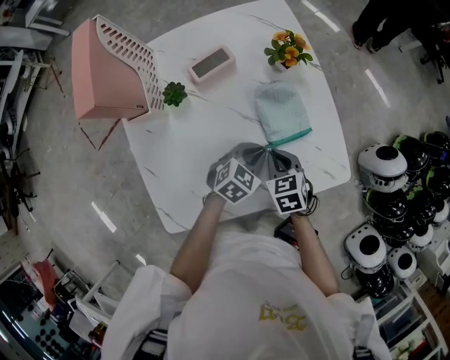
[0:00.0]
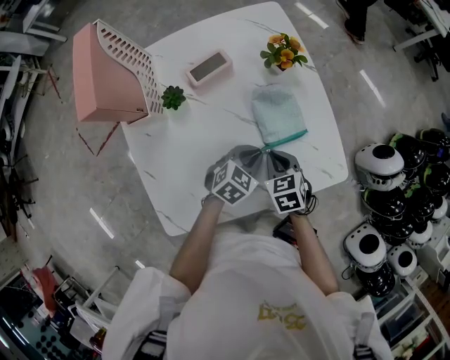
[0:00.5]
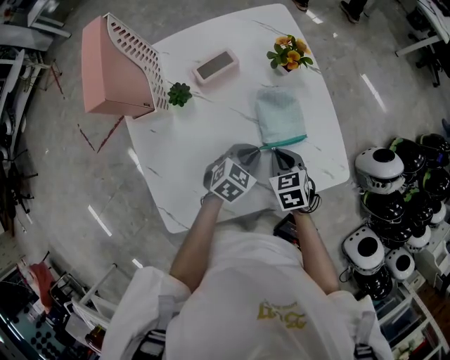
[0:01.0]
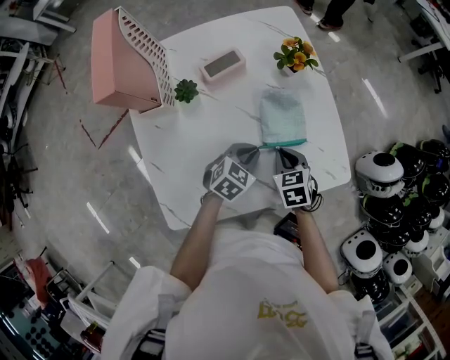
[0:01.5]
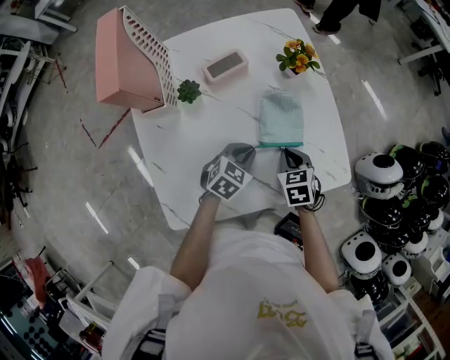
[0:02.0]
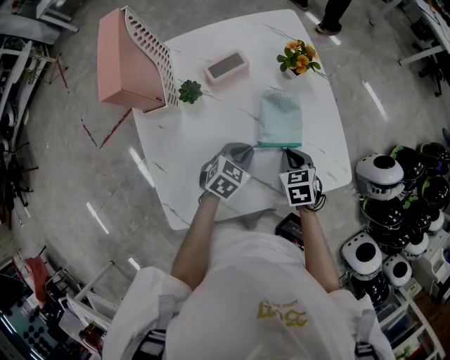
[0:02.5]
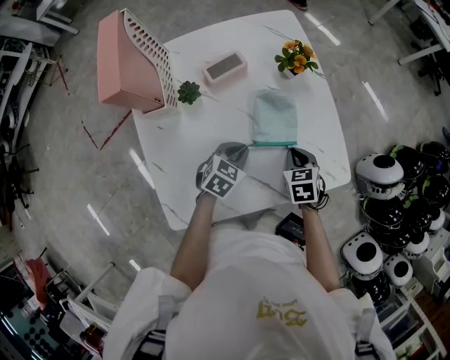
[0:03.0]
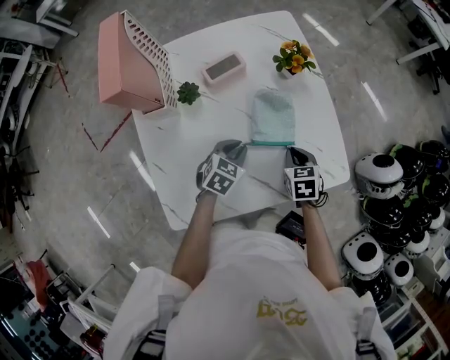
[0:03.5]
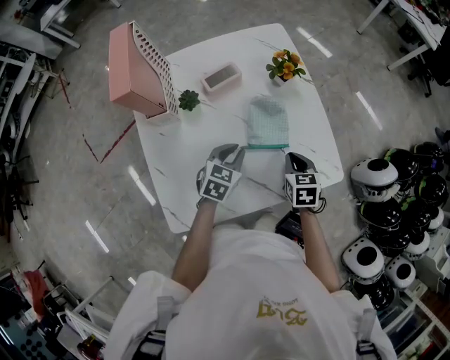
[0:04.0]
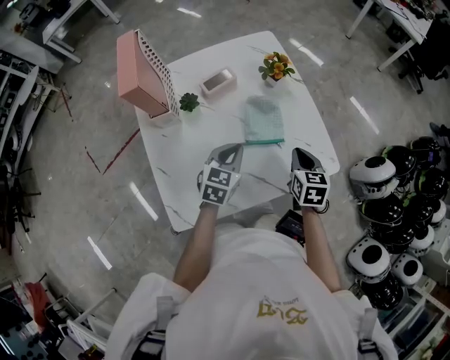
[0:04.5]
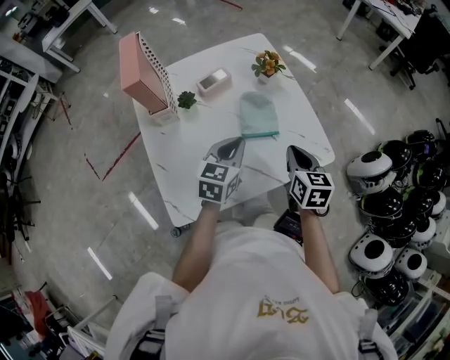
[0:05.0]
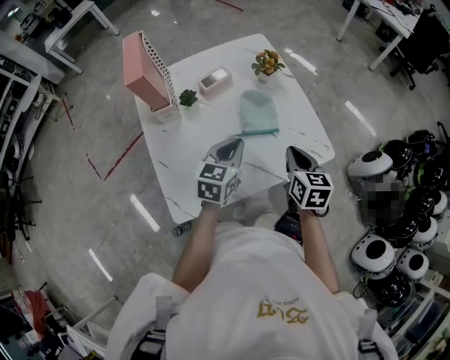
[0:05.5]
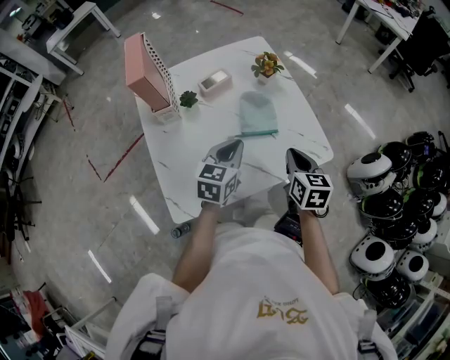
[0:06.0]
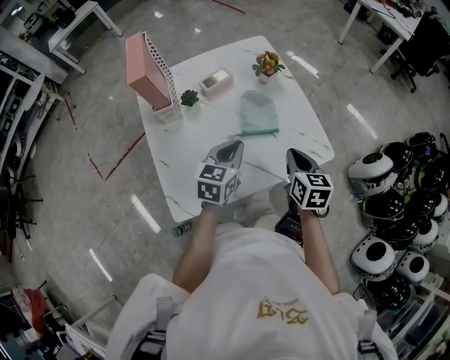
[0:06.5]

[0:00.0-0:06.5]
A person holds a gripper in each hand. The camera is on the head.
0:00.0 to 0:02.0: The left gripper is displaced to the left by approximately 5 cm.
0:02.0 to 0:04.5: The left gripper travels upward by approximately 10 cm, and rotates some 20 degrees. Meanwhile the right gripper heads upward and to the right, covering roughly 10 cm, and turns by some 30 degrees.
0:04.5 to 0:06.5: The left gripper goes some 10 cm upward and backward. The right gripper goes about 10 cm backward and upward.

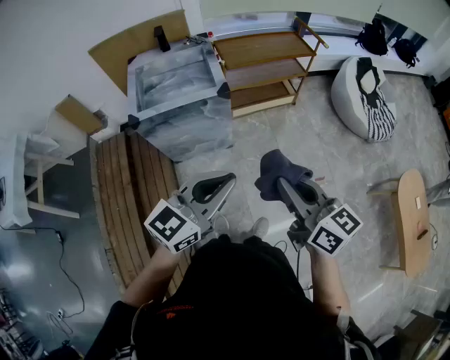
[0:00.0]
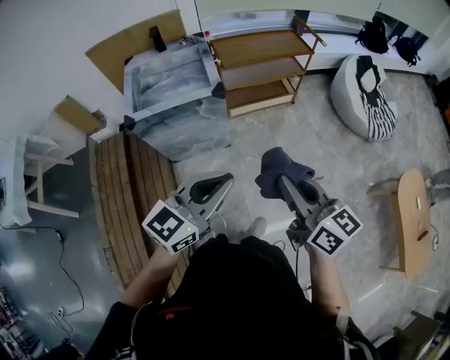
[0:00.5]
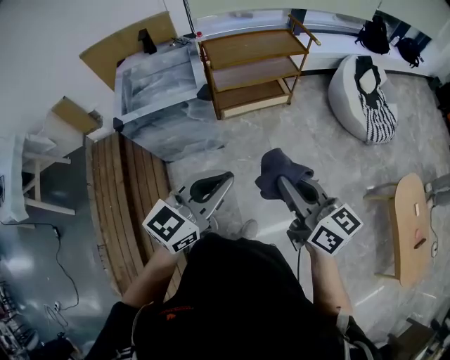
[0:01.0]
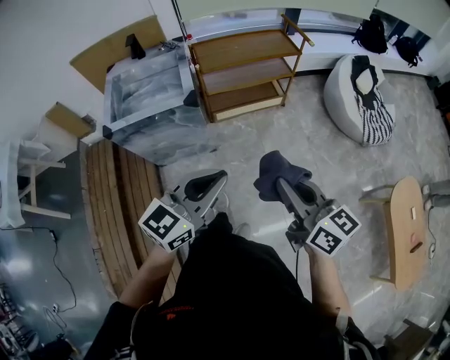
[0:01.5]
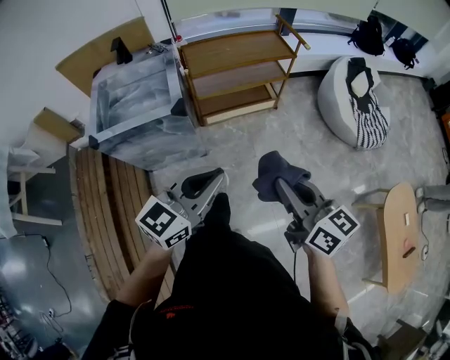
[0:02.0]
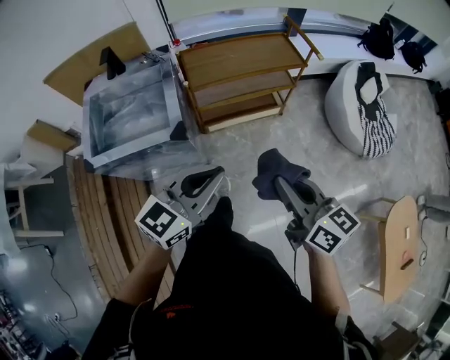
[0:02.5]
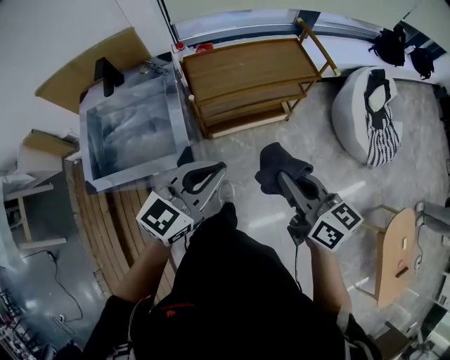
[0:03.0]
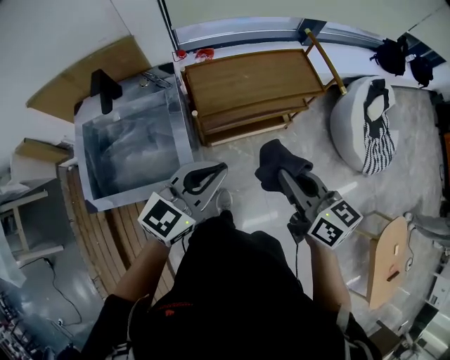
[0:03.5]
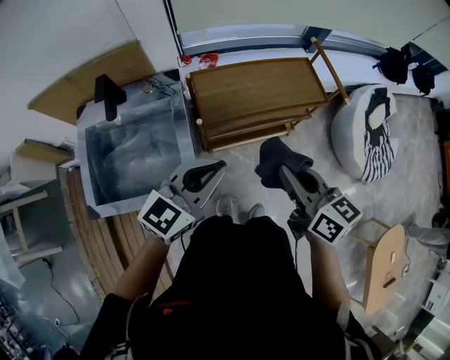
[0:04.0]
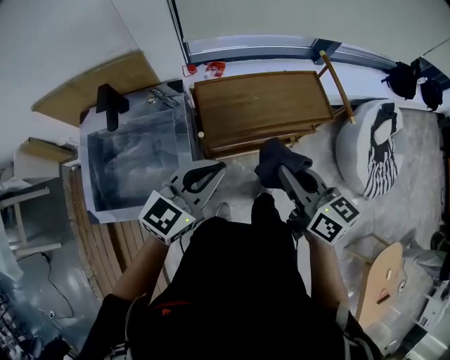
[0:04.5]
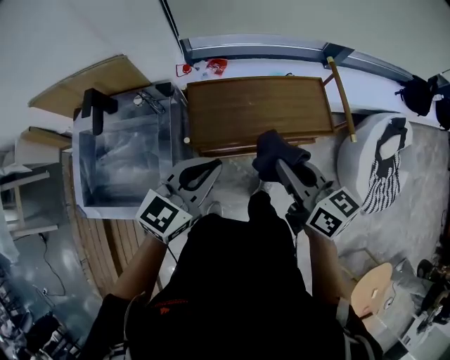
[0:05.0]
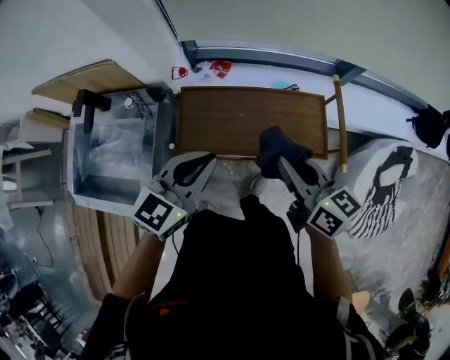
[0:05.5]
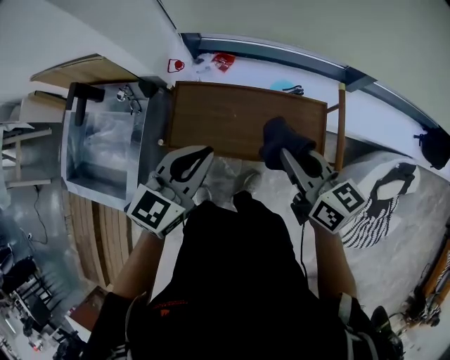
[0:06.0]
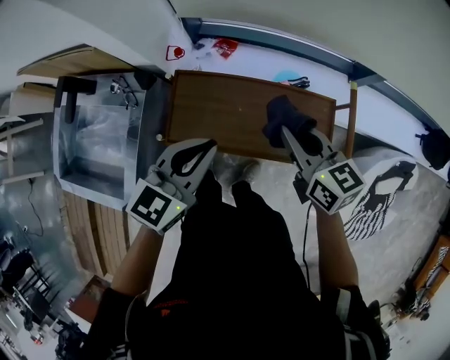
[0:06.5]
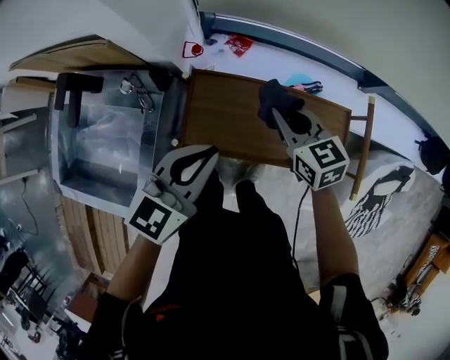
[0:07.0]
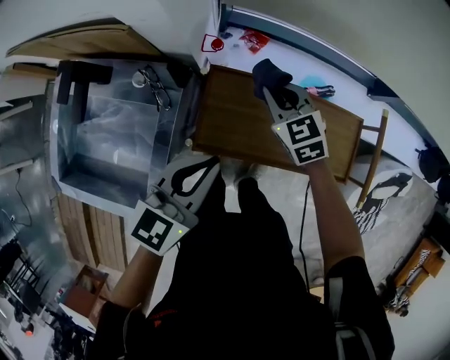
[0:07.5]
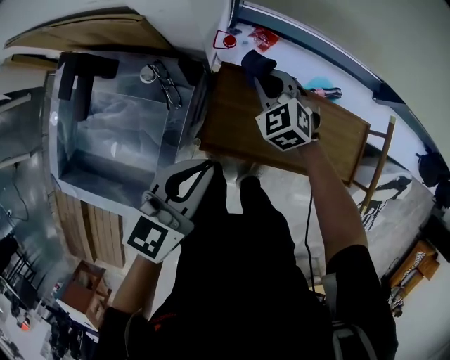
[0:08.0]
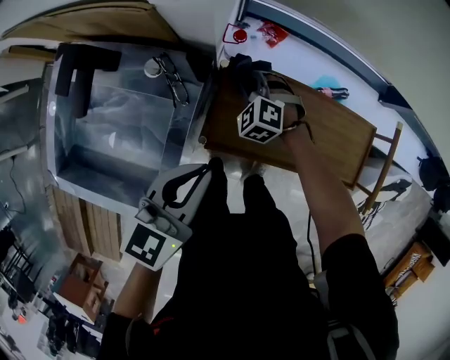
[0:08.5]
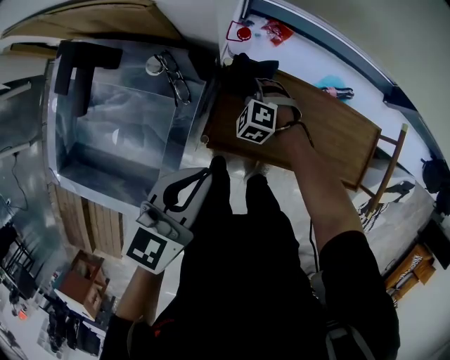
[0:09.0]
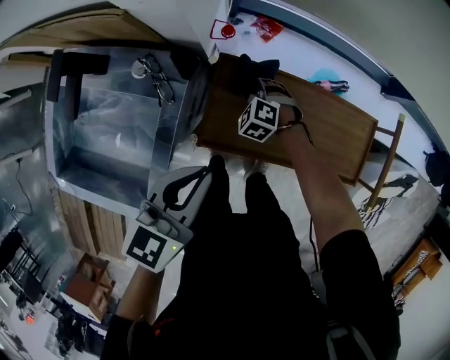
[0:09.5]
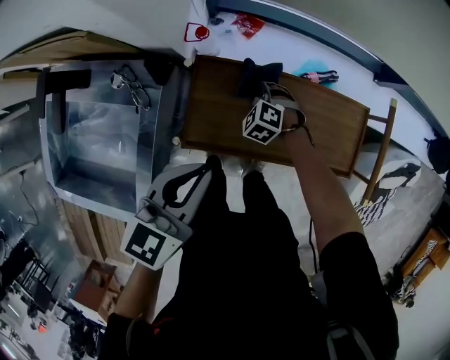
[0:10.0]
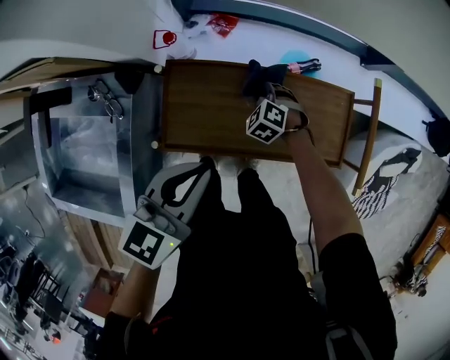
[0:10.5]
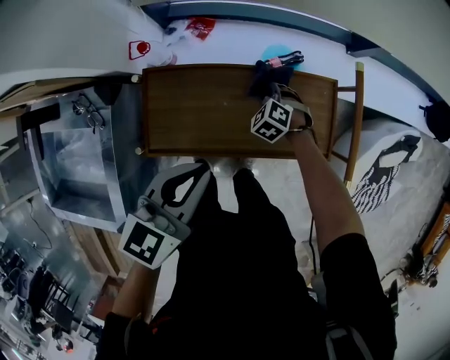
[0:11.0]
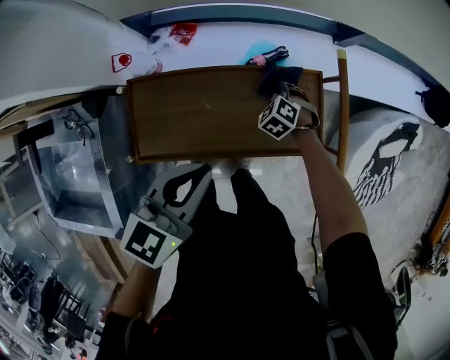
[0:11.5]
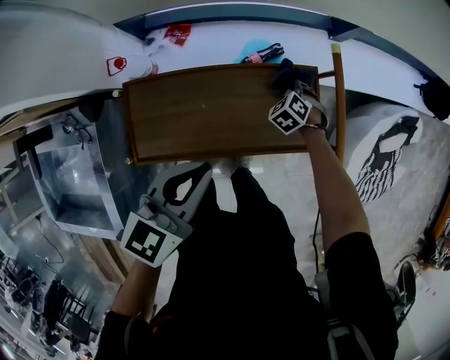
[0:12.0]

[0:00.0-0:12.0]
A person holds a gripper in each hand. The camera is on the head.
0:00.0 to 0:02.0: The right gripper moves to the right and forward, roughly 20 cm; the left gripper is displaced forward and to the right by approximately 20 cm.
0:02.0 to 0:04.0: Both grippers are carried forward, some 40 cm.
0:04.0 to 0:06.0: The left gripper shifts by approximately 30 cm, and swivels approximately 30 degrees. The right gripper ends up roughly 35 cm from where it was, and changes its angle by about 30 degrees.
0:06.0 to 0:08.0: The left gripper goes approximately 20 cm to the left; the right gripper shifts approximately 40 cm to the left, forward and downward, and rotates around the line of its fingers by about 60 degrees, counterclockwise from behind.
0:08.0 to 0:10.0: The left gripper moves to the right, approximately 5 cm, while the right gripper travels downward and to the right by roughly 15 cm, and turns by some 20 degrees.
0:10.0 to 0:12.0: The left gripper shifts by about 20 cm. The right gripper moves roughly 35 cm, and turns by about 30 degrees.

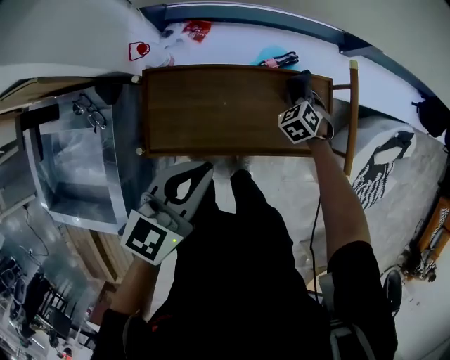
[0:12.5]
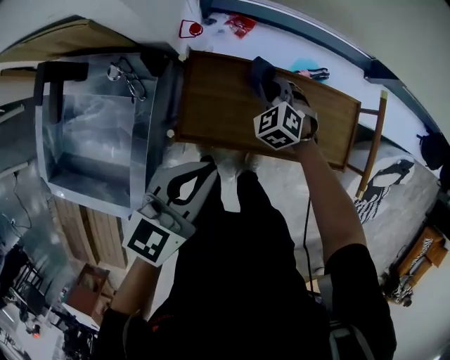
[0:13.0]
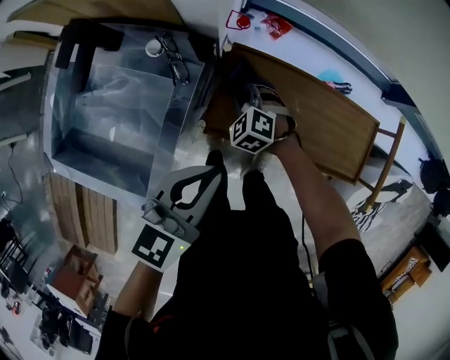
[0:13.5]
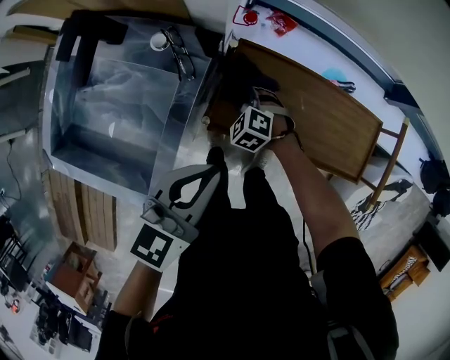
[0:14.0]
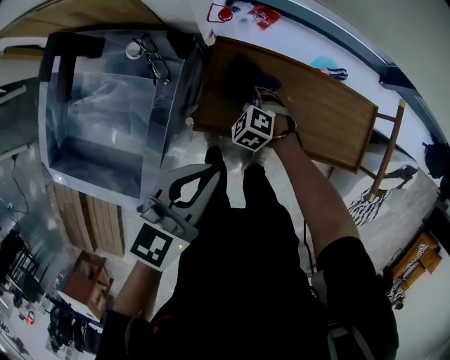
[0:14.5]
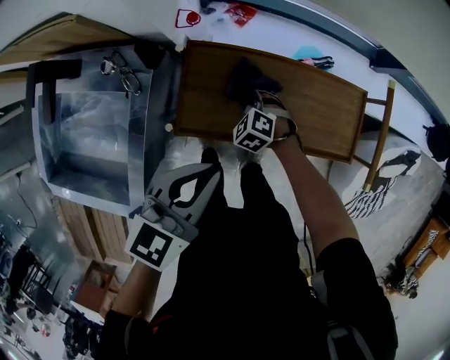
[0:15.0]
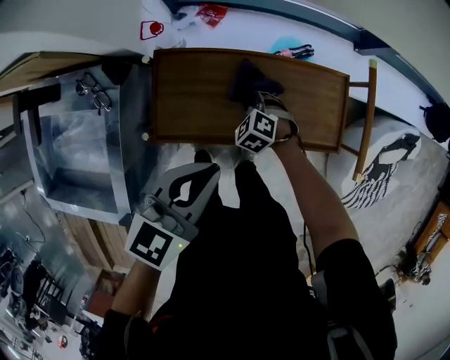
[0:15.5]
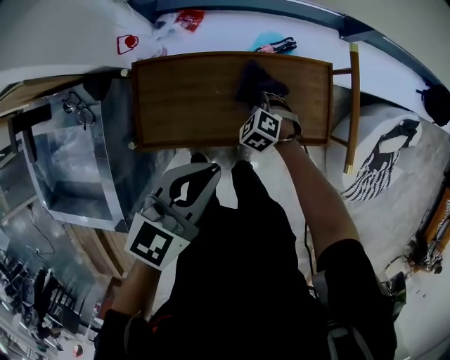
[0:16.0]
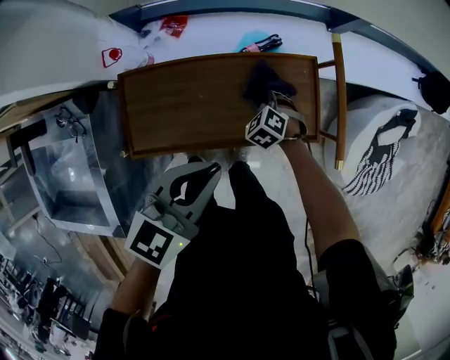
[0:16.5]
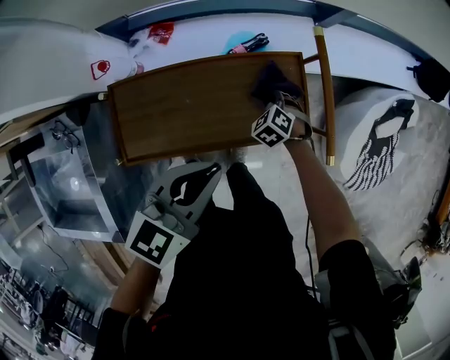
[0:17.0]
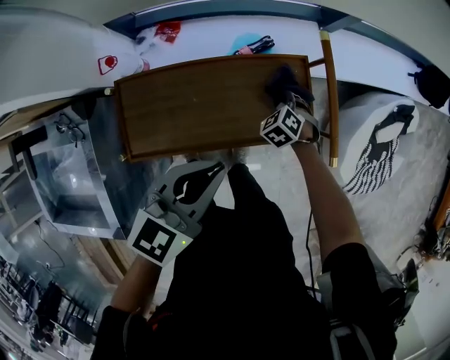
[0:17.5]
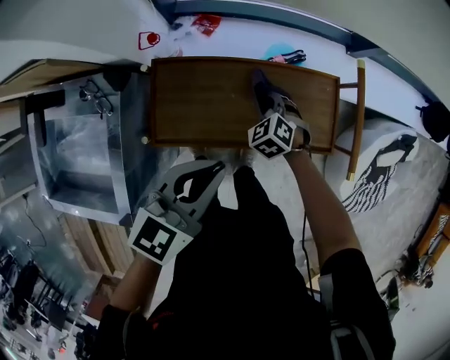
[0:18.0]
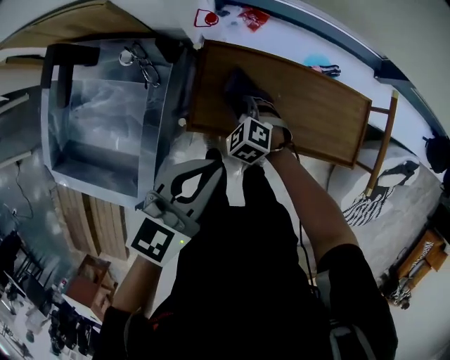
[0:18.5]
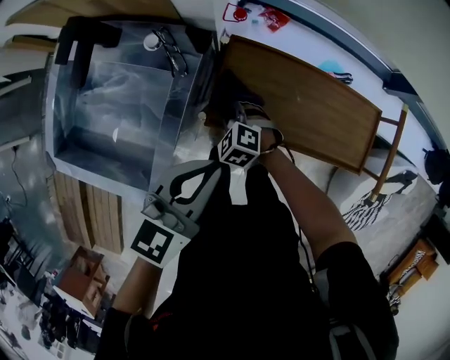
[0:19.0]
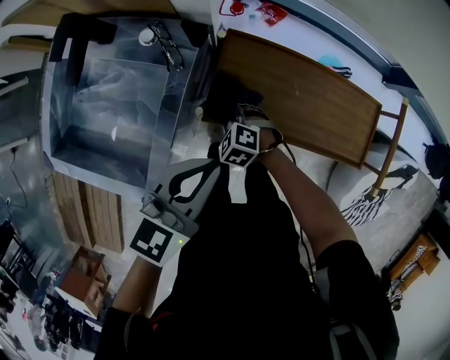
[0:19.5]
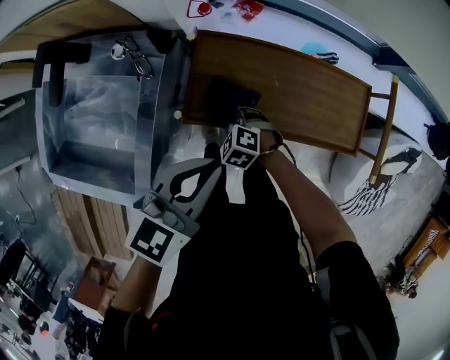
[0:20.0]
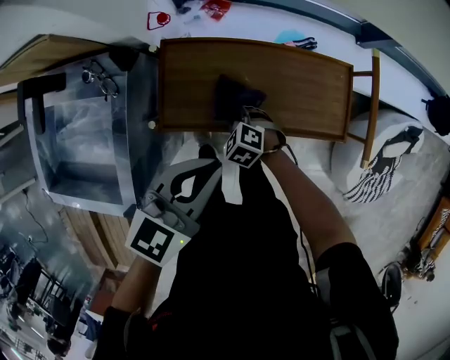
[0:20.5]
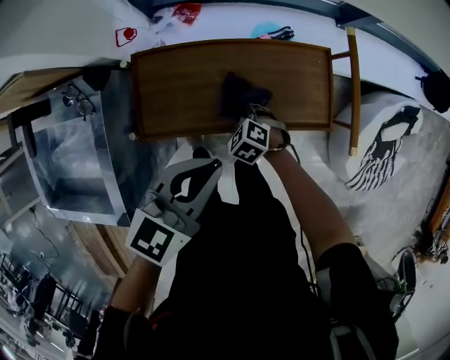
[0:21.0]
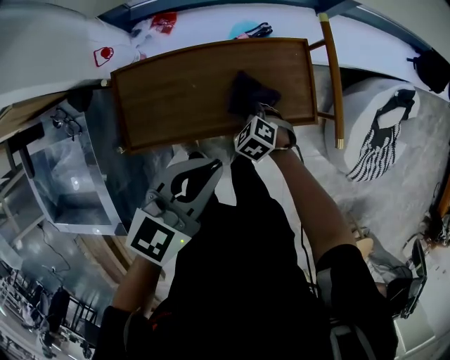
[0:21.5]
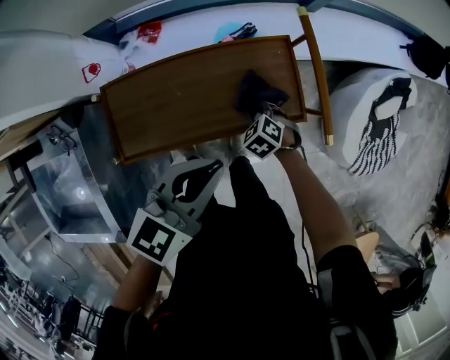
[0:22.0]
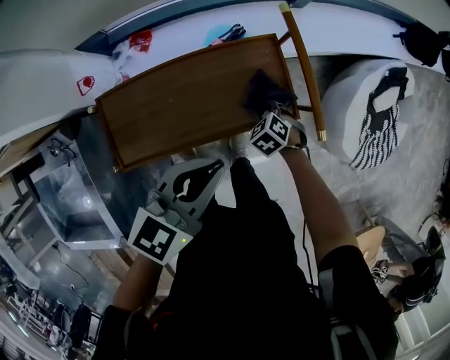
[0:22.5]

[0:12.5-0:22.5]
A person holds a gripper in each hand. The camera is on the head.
0:12.5 to 0:14.5: The right gripper ends up roughly 35 cm from where it was, and swivels about 30 degrees. The left gripper changes place by roughly 15 cm.
0:14.5 to 0:16.5: The right gripper shifts by approximately 35 cm, and changes its angle by about 30 degrees. The left gripper changes place by approximately 25 cm, and swivels some 20 degrees.
0:16.5 to 0:18.5: The right gripper moves about 30 cm, and changes its angle by approximately 20 degrees. The left gripper shifts by roughly 20 cm.
0:18.5 to 0:20.5: The left gripper heads to the right, covering about 10 cm. Meanwhile the right gripper heads to the right and backward, covering about 10 cm.
0:20.5 to 0:22.5: The right gripper changes place by roughly 30 cm, and changes its angle by about 30 degrees, while the left gripper changes place by about 20 cm.
